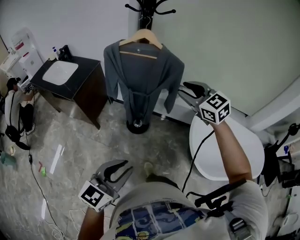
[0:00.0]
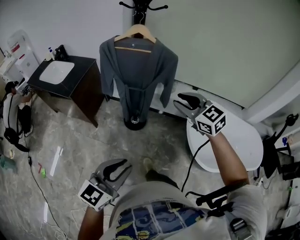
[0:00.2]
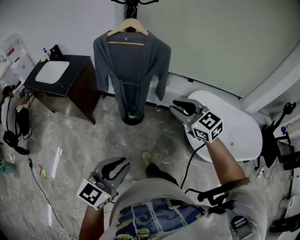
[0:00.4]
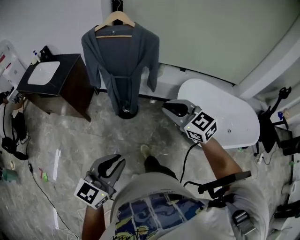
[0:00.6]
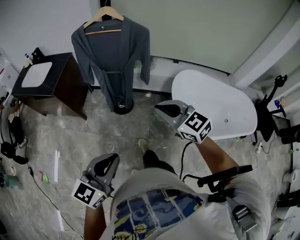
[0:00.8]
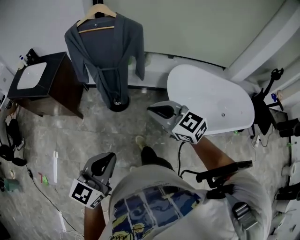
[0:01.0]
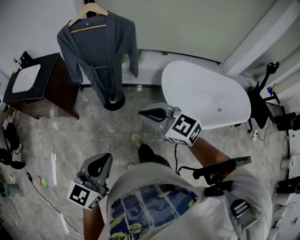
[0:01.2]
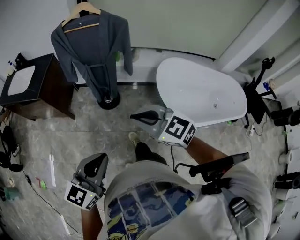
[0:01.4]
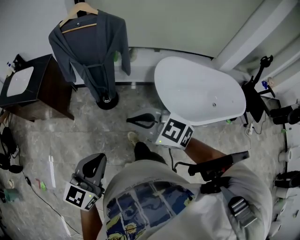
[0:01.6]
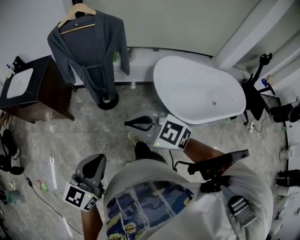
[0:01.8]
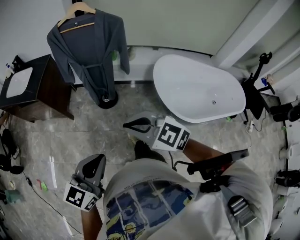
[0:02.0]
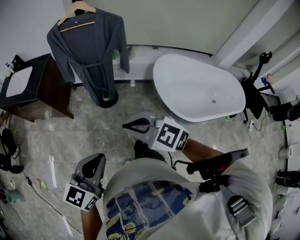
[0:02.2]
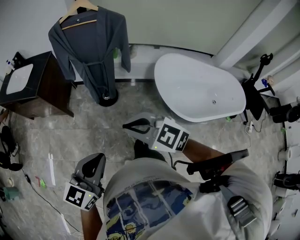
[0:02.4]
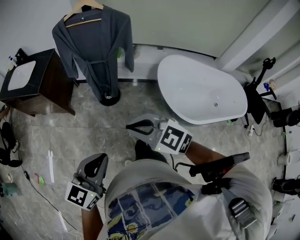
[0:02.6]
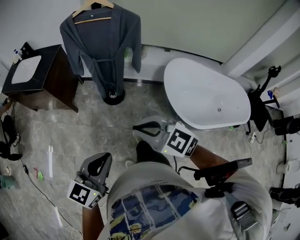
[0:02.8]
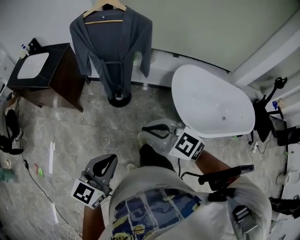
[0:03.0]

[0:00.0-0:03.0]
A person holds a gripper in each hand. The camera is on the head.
0:00.0 to 0:01.6: The right gripper travels backward by roughly 30 cm, and closes its fingers, while the left gripper shifts approximately 10 cm backward, and closes its fingers.
0:01.6 to 0:03.0: The grippers move only a little.

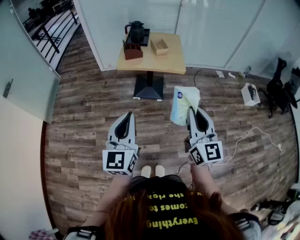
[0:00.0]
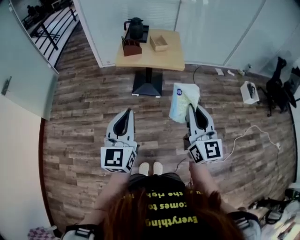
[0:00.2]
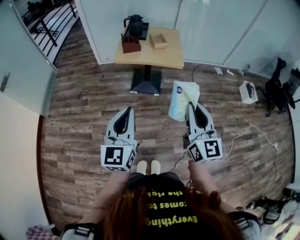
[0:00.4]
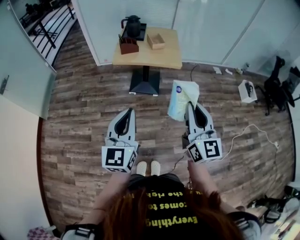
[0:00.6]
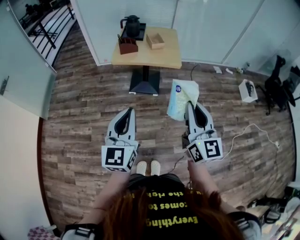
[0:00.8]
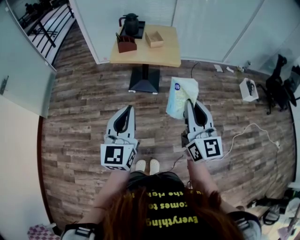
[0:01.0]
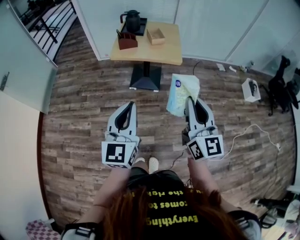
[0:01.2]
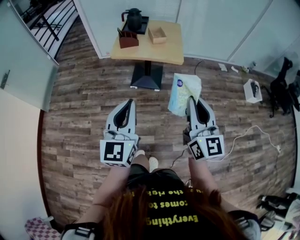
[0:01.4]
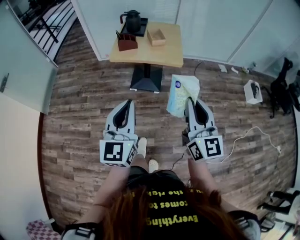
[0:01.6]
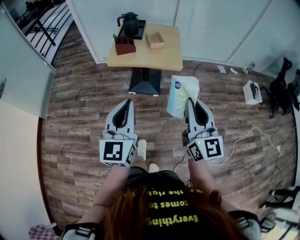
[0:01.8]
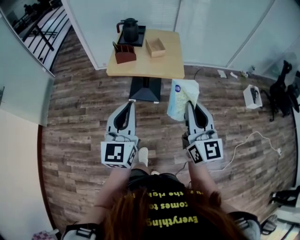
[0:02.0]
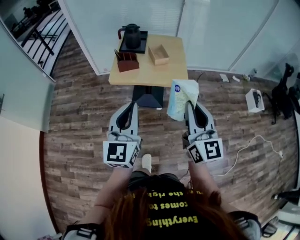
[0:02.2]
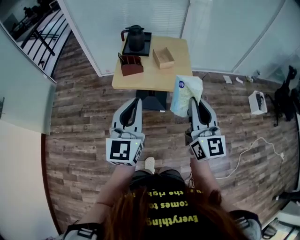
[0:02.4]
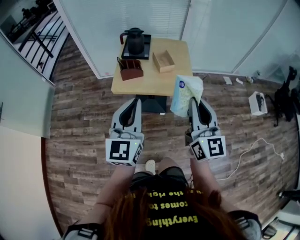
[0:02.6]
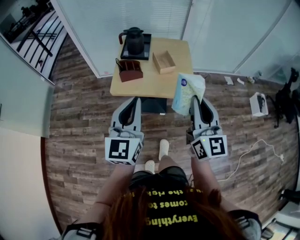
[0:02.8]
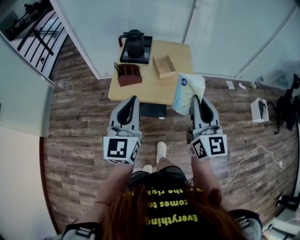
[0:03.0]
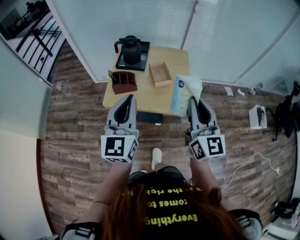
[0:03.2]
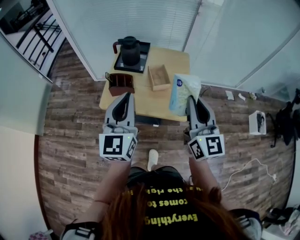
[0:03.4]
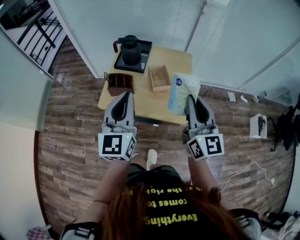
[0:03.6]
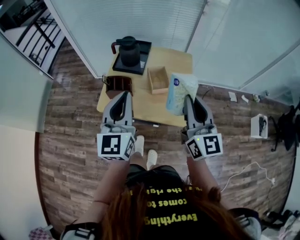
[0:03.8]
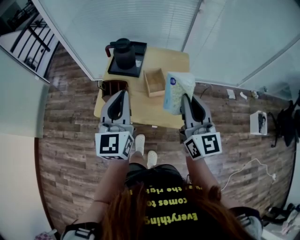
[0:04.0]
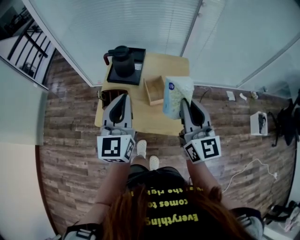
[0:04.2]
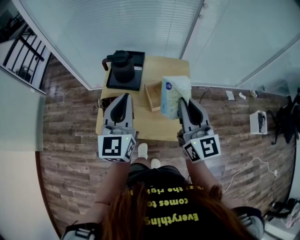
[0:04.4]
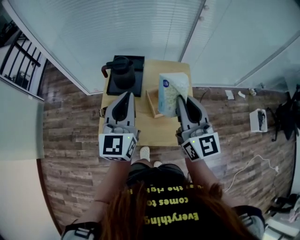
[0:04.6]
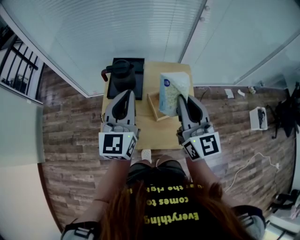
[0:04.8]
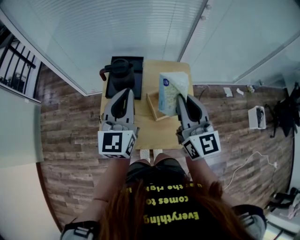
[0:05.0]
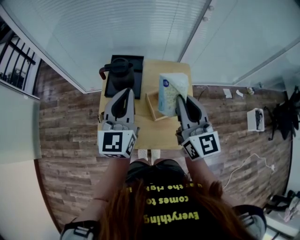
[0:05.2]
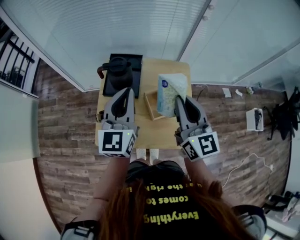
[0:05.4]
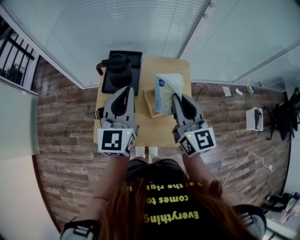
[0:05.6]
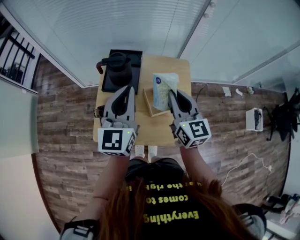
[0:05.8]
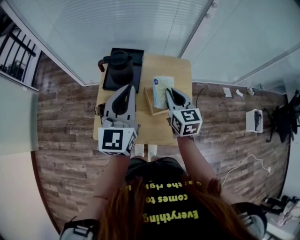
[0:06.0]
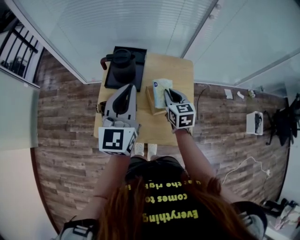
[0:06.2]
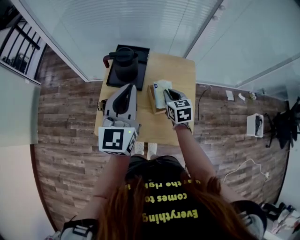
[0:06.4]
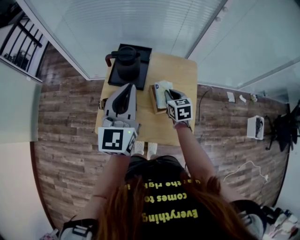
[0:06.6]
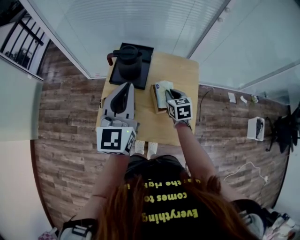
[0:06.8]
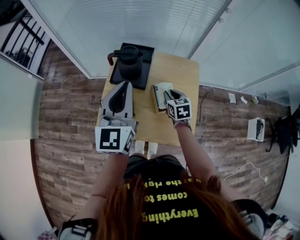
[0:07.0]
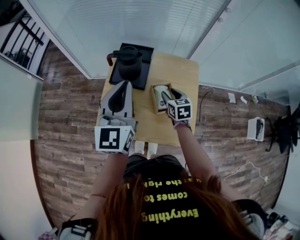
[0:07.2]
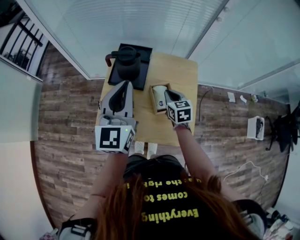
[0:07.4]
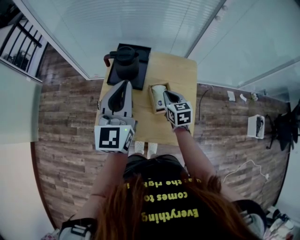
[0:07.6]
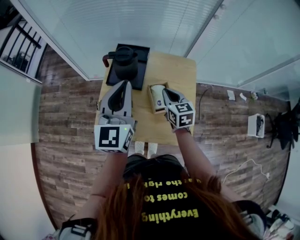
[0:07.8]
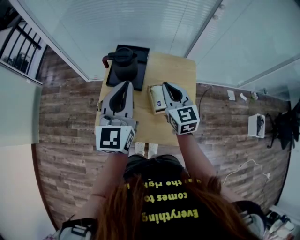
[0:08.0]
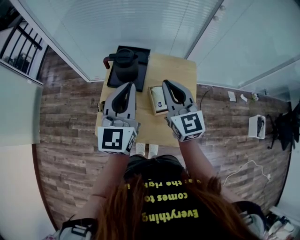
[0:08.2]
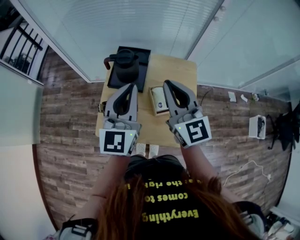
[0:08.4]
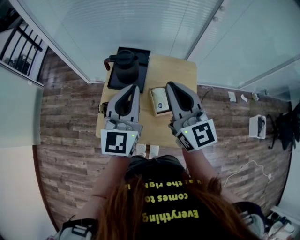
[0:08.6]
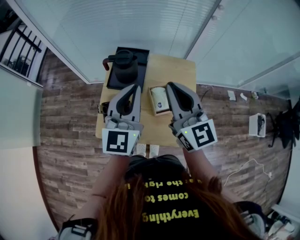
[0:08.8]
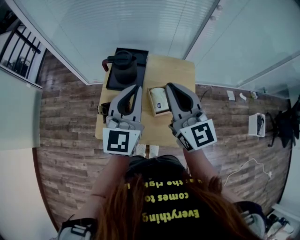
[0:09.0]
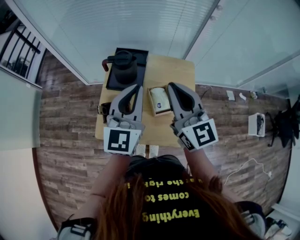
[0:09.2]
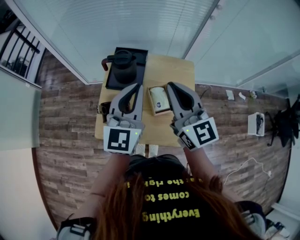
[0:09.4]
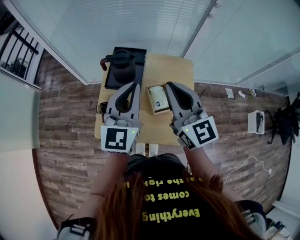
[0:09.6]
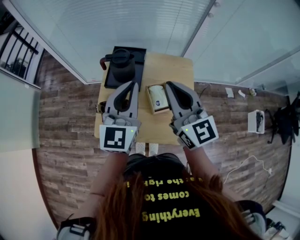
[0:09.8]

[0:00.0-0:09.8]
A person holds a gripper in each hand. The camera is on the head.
0:00.0 to 0:01.4: The grippers both shift to the right by approximately 5 cm.
0:01.4 to 0:02.8: Both grippers travel together forward, approximately 30 cm.
0:02.8 to 0:04.2: The two grippers go roughly 25 cm forward.
0:04.2 to 0:05.6: The grippers both shift forward by approximately 15 cm.
0:05.6 to 0:07.0: The right gripper heads downward, covering some 25 cm, and points its fingers approximately 40 degrees further downward.
0:07.0 to 0:08.4: The right gripper goes approximately 25 cm upward, tilts its fingers about 40 degrees upward, and opens, then closes once more.
0:08.4 to 0:09.8: The grippers move only a little.

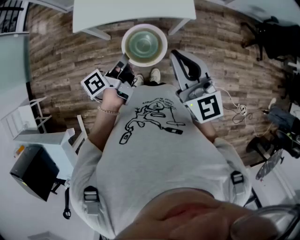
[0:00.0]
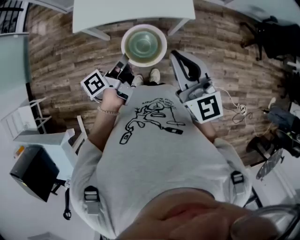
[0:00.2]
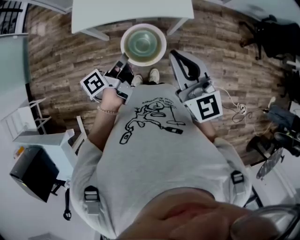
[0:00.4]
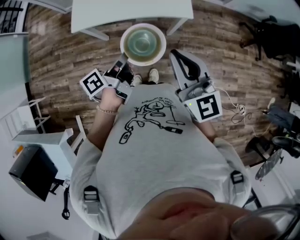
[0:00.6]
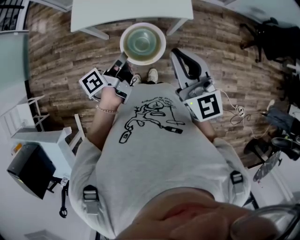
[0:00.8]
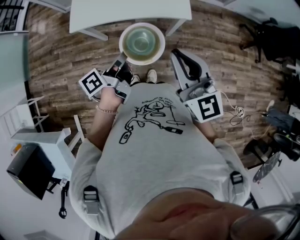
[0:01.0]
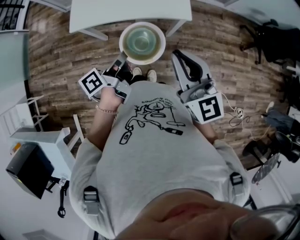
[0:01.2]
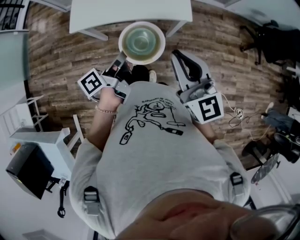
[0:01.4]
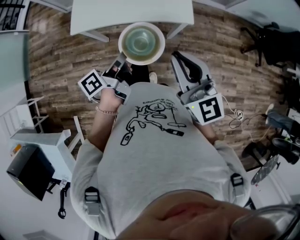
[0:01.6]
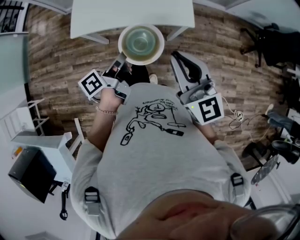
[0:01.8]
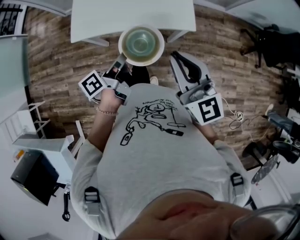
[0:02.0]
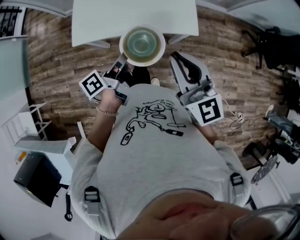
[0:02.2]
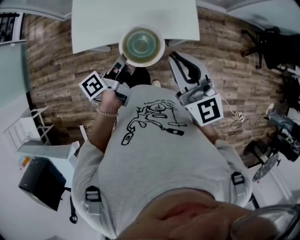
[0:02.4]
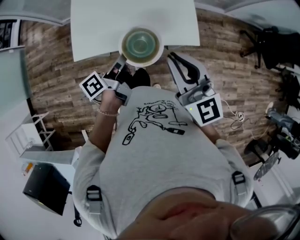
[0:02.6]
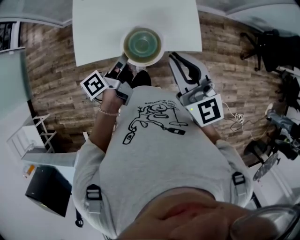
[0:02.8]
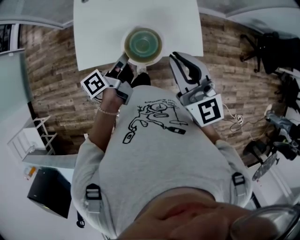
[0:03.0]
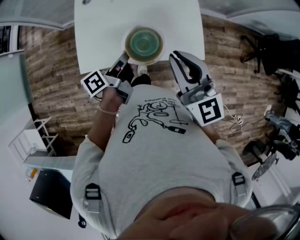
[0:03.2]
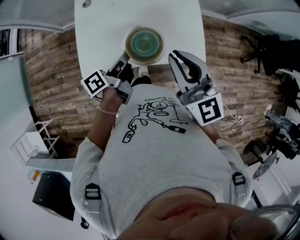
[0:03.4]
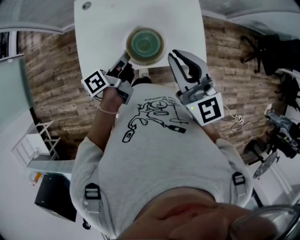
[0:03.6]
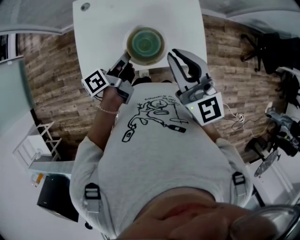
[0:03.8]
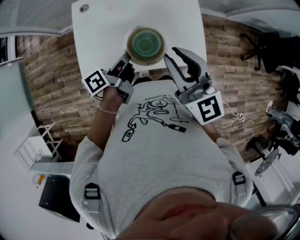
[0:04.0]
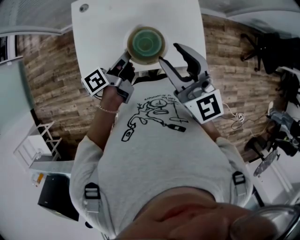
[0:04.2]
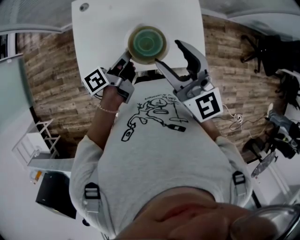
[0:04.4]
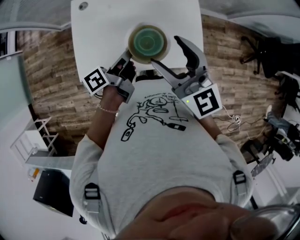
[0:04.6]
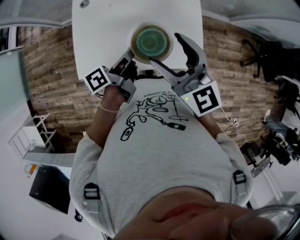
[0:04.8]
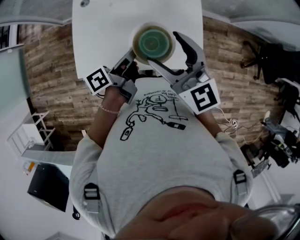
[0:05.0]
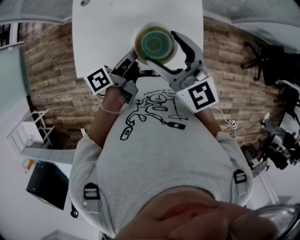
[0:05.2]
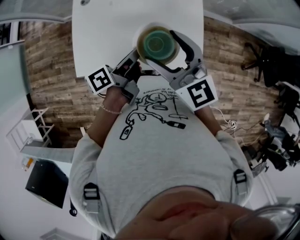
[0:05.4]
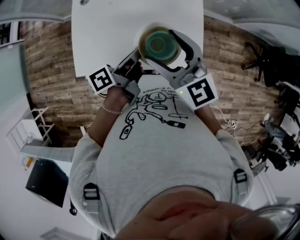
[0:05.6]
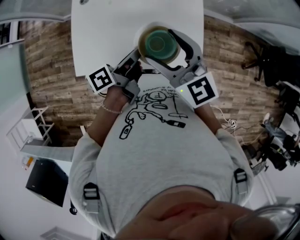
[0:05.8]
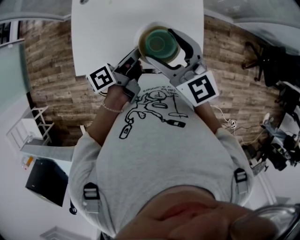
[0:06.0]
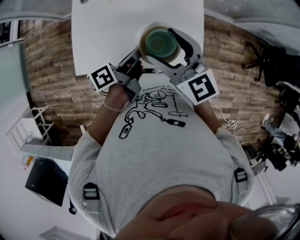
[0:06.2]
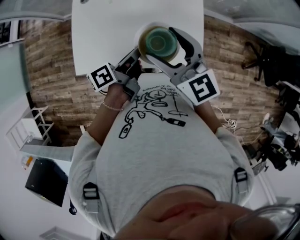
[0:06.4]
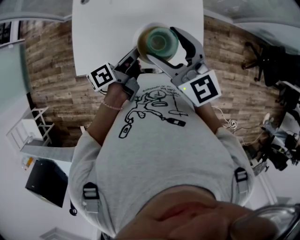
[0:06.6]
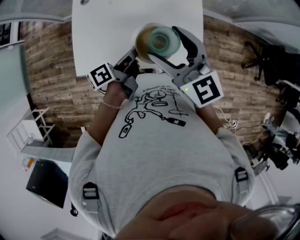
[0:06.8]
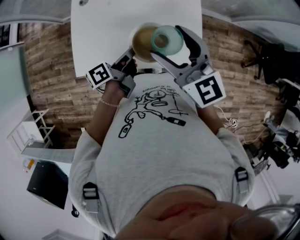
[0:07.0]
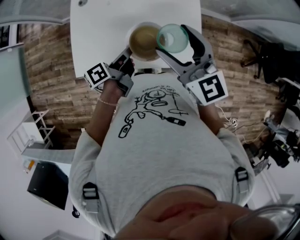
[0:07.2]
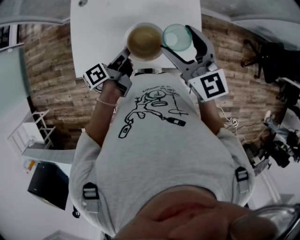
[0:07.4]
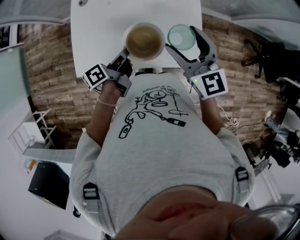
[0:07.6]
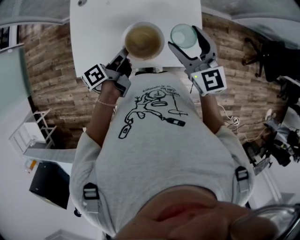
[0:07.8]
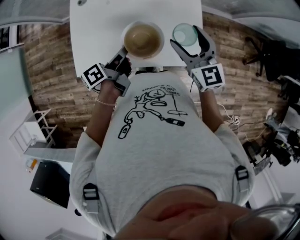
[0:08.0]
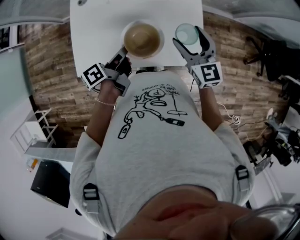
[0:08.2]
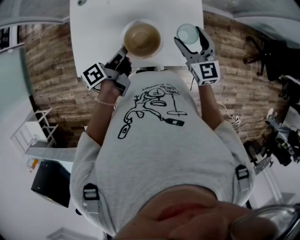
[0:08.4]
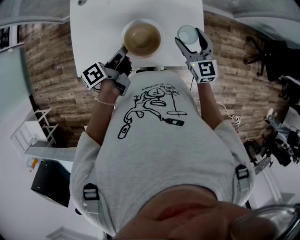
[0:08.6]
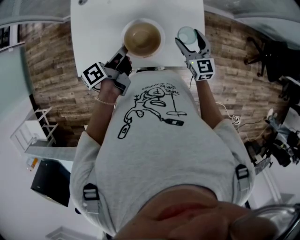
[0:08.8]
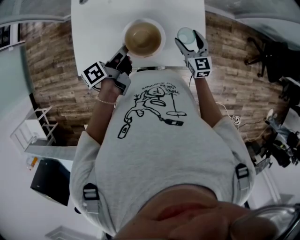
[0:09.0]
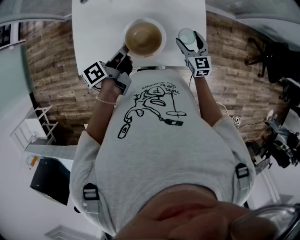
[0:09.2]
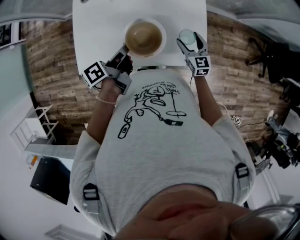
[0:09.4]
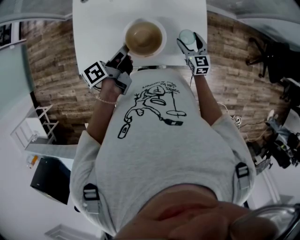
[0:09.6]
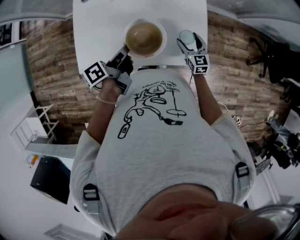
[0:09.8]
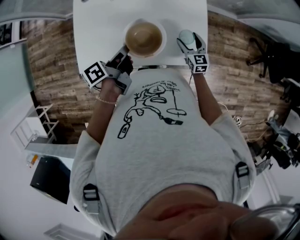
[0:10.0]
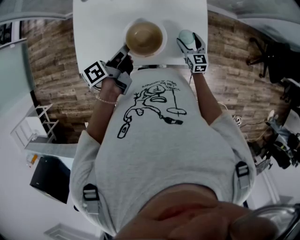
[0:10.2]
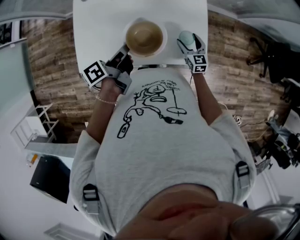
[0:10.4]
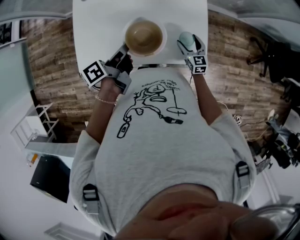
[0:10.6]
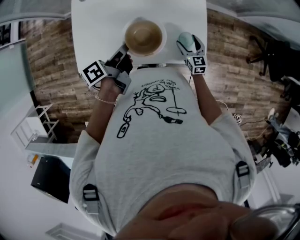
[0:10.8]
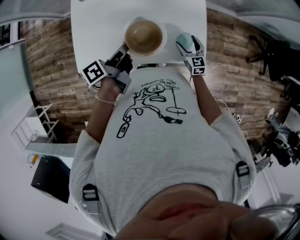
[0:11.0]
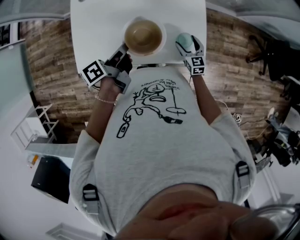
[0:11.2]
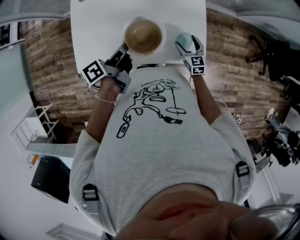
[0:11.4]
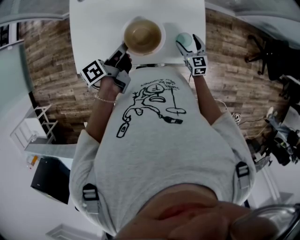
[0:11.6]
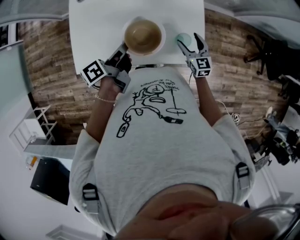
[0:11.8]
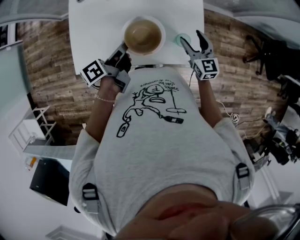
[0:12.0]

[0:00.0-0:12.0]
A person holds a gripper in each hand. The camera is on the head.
0:01.6 to 0:03.0: The right gripper shifts by approximately 25 cm.
0:03.0 to 0:04.4: The right gripper ends up some 10 cm from where it was, and opens.
0:04.4 to 0:06.0: The right gripper shifts by roughly 5 cm.
0:06.0 to 0:07.6: The right gripper shifts by about 10 cm.
0:07.6 to 0:09.0: The right gripper heads downward, covering some 20 cm.
0:09.0 to 0:10.4: The right gripper shifts about 10 cm downward.
0:10.4 to 0:12.0: The right gripper is displaced upward by about 15 cm.
